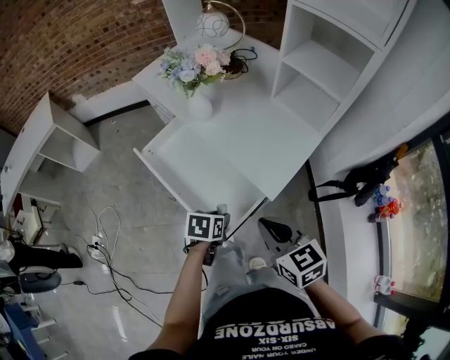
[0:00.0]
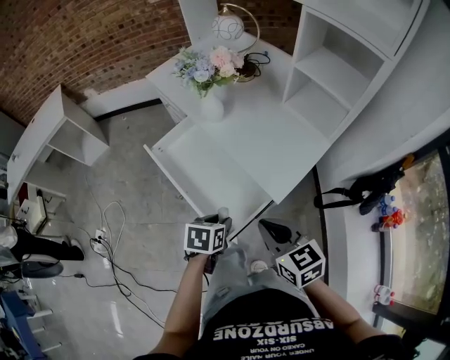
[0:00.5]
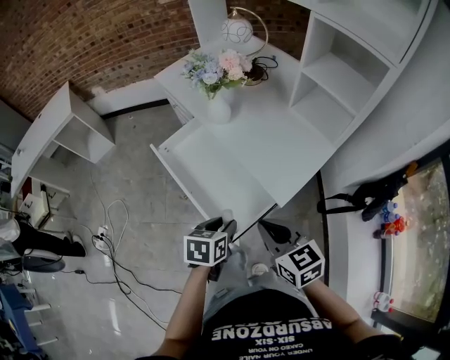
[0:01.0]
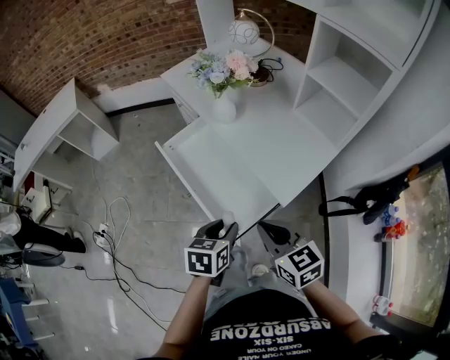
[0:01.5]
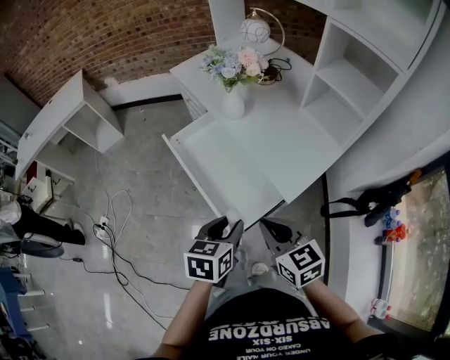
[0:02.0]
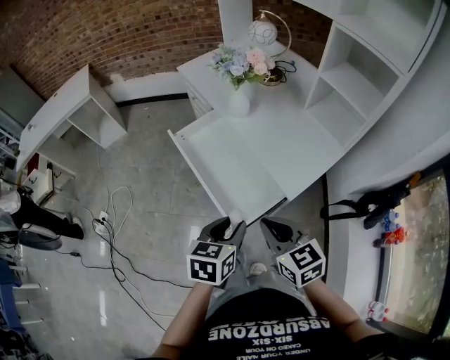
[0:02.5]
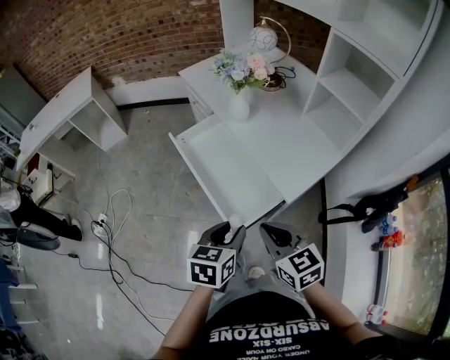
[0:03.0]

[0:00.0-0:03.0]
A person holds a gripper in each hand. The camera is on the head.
0:00.0 to 0:01.5: The left gripper shifts approximately 10 cm upward, and rotates approximately 20 degrees.
0:01.5 to 0:03.0: The right gripper shifts by about 5 cm. The left gripper shifts about 10 cm backward and upward.

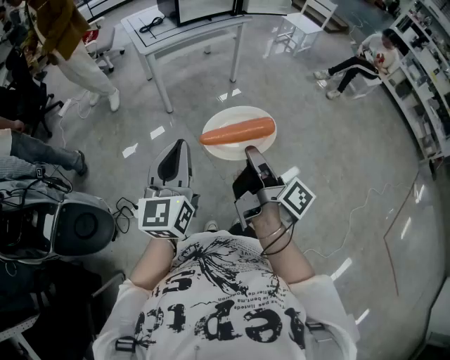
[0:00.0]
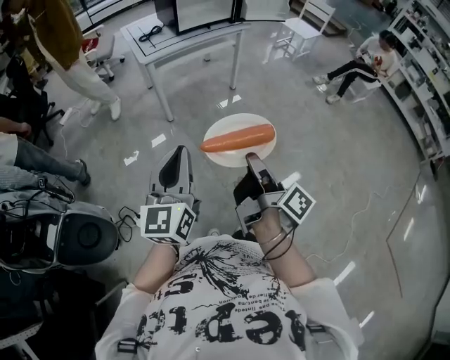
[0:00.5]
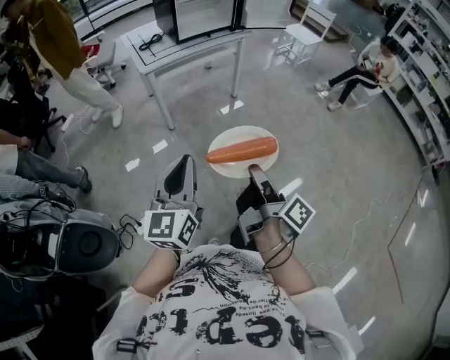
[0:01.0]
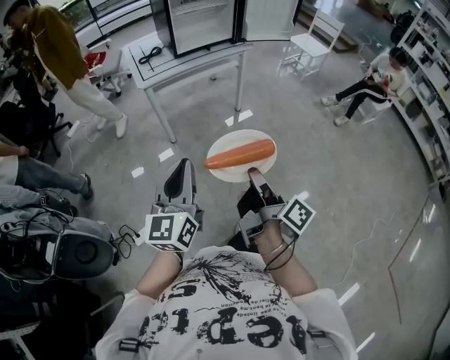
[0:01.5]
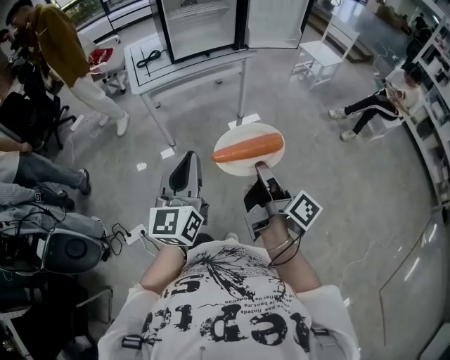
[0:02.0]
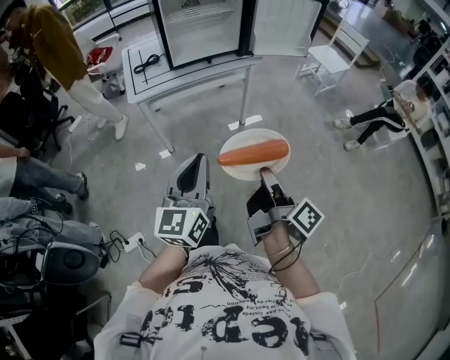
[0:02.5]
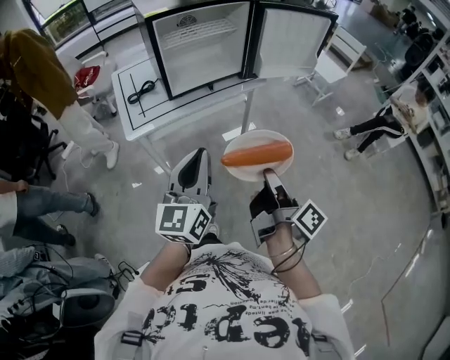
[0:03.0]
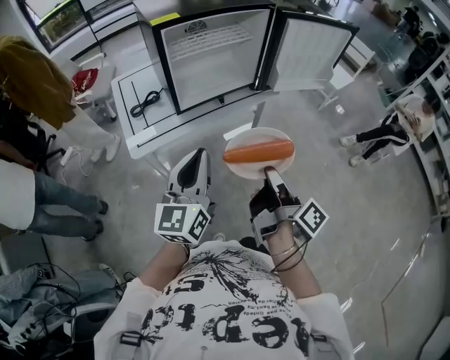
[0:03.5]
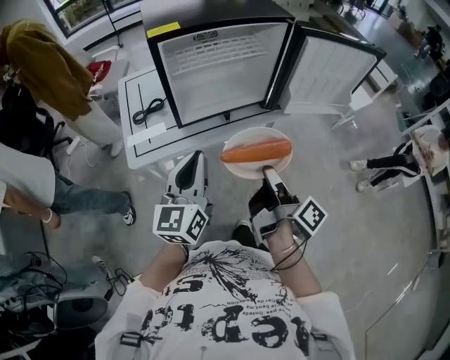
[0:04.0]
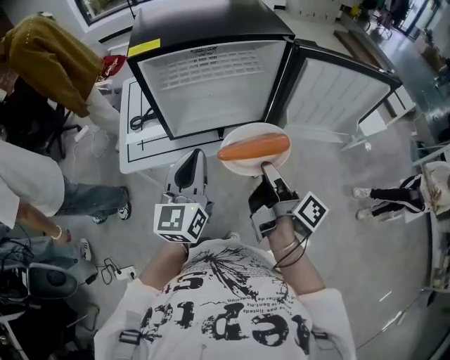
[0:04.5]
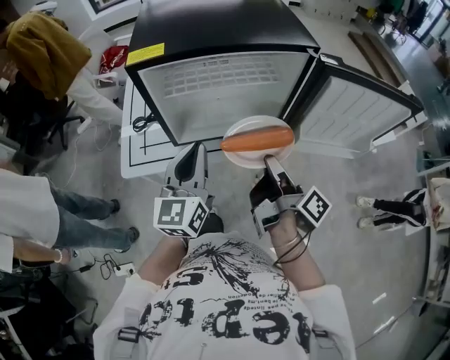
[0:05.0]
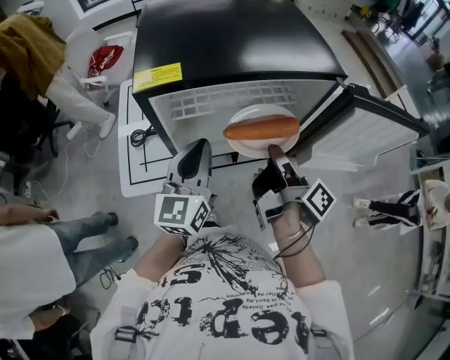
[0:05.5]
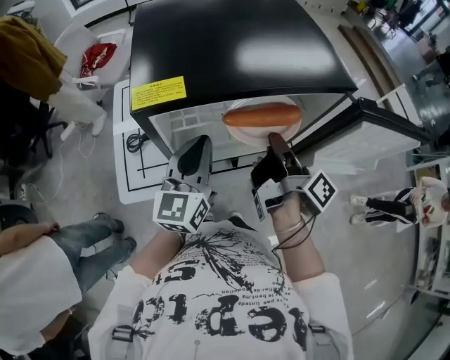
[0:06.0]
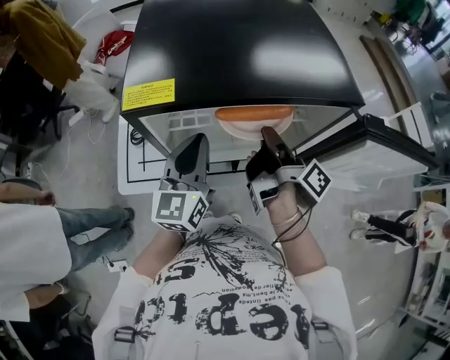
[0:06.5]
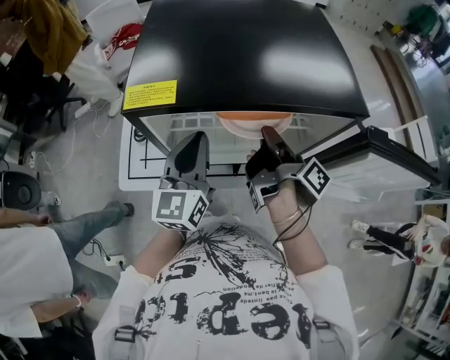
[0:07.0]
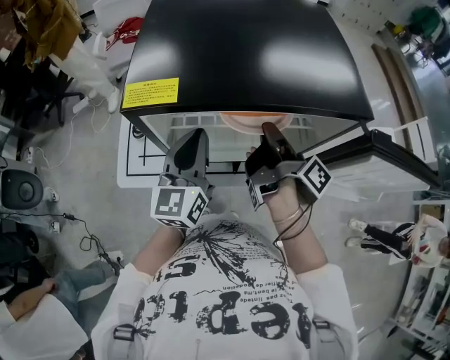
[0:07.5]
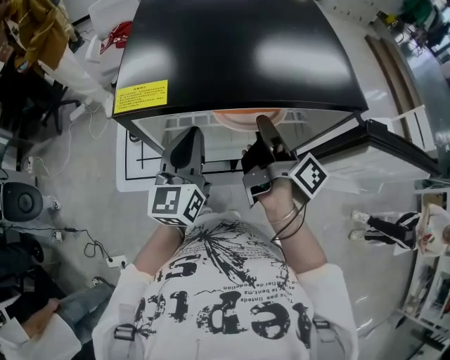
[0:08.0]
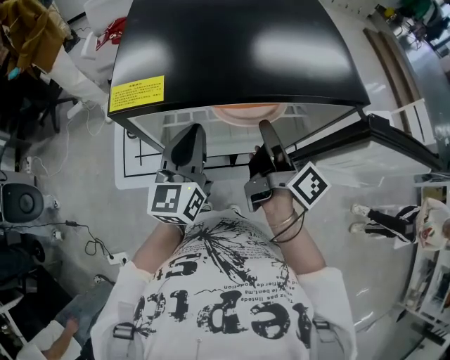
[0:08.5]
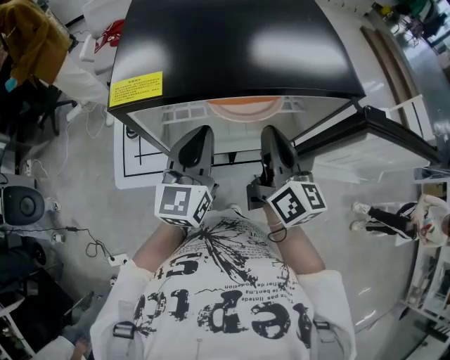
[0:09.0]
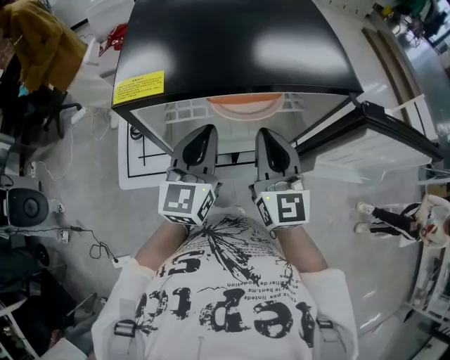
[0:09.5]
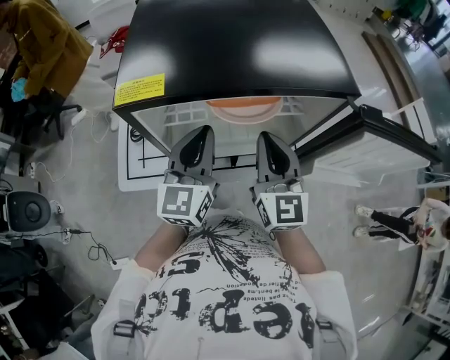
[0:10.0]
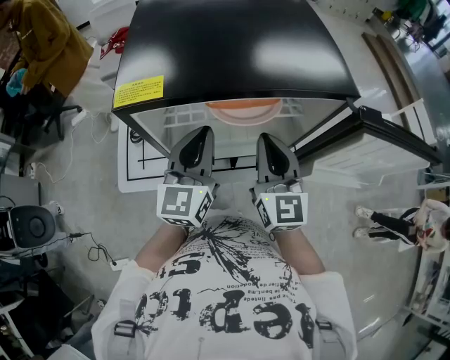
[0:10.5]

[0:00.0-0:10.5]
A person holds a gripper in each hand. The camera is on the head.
0:00.0 to 0:02.0: The left gripper ends up about 25 cm from where it was.
0:02.0 to 0:04.0: The left gripper changes place by roughly 50 cm.
0:04.0 to 0:06.5: The left gripper ends up roughly 30 cm from where it was.

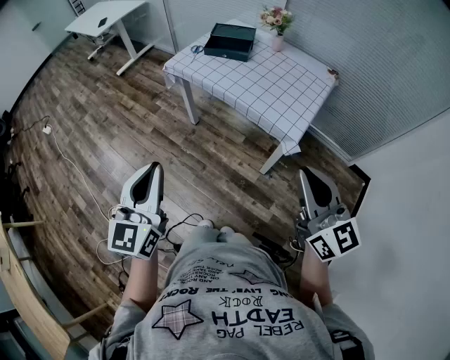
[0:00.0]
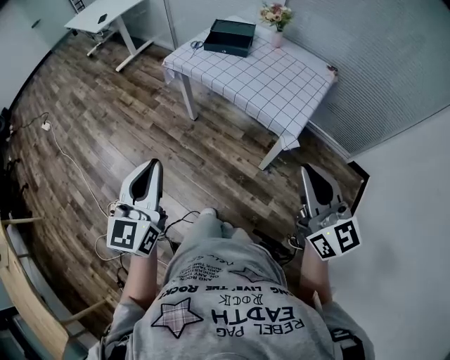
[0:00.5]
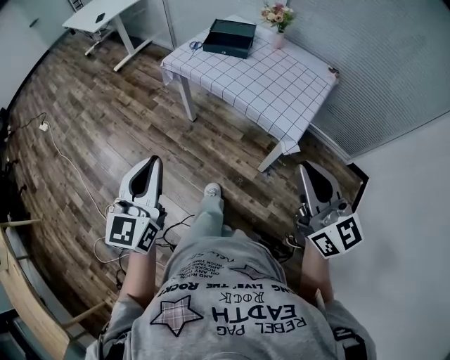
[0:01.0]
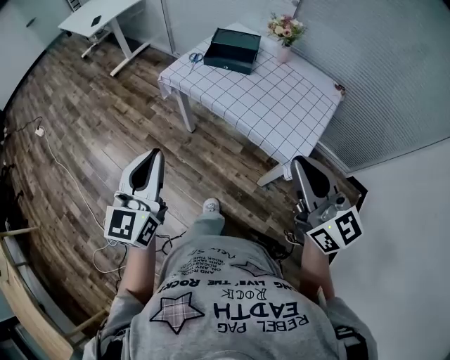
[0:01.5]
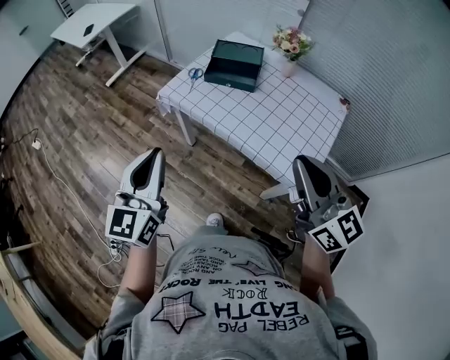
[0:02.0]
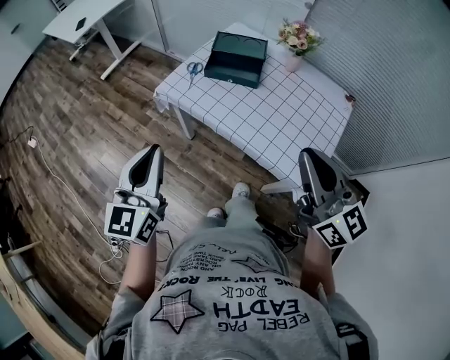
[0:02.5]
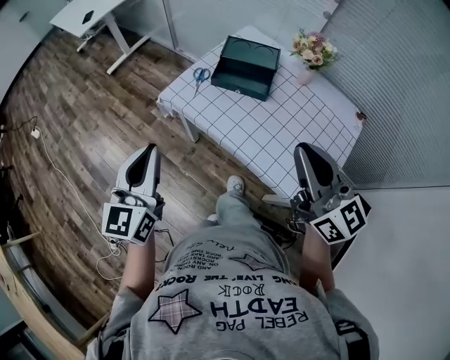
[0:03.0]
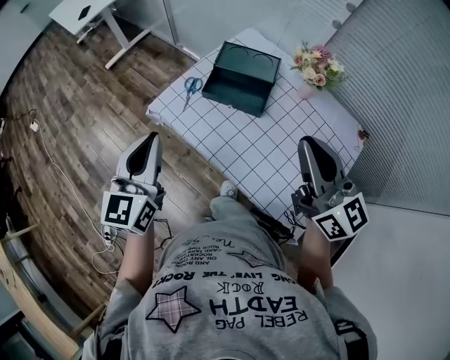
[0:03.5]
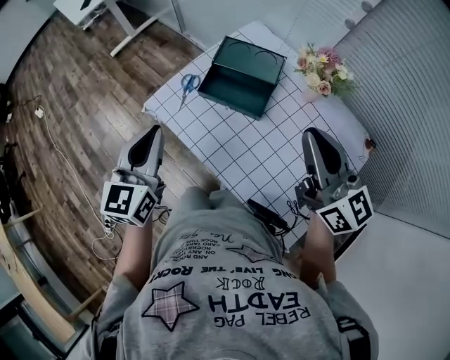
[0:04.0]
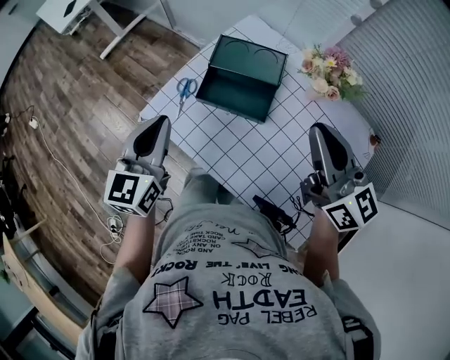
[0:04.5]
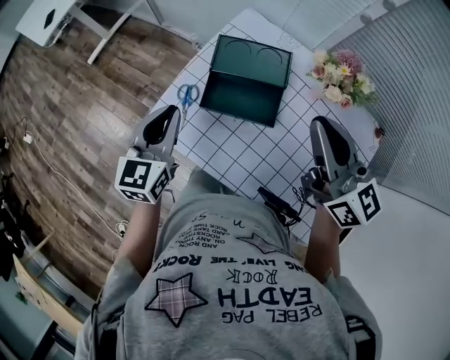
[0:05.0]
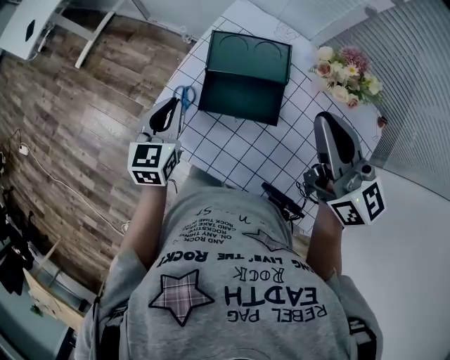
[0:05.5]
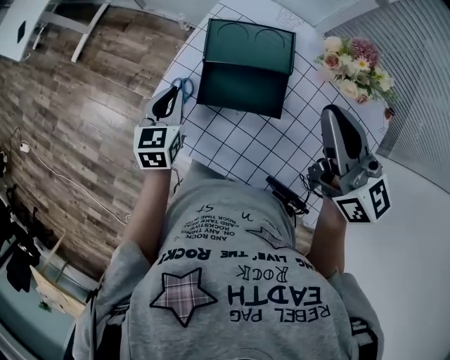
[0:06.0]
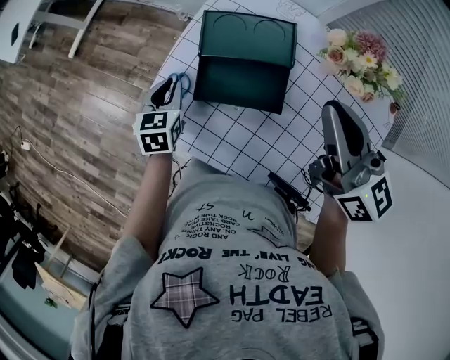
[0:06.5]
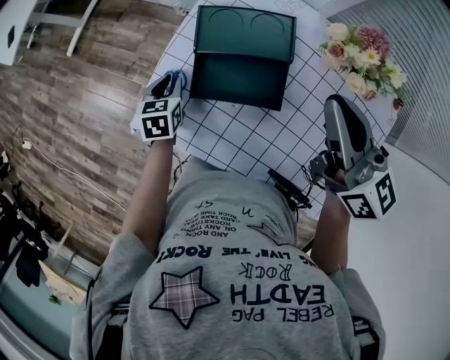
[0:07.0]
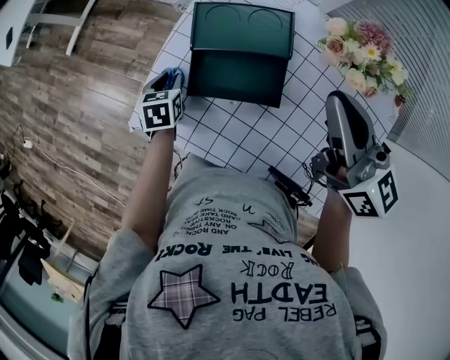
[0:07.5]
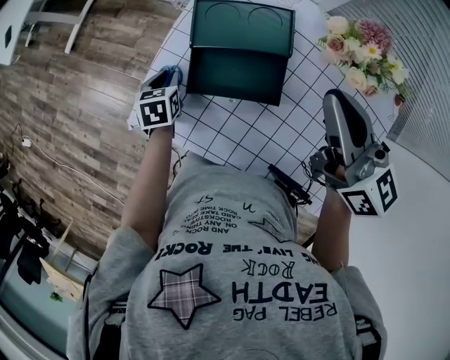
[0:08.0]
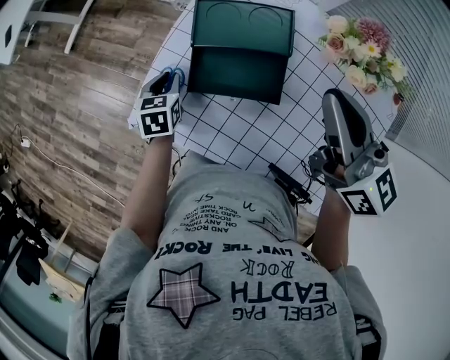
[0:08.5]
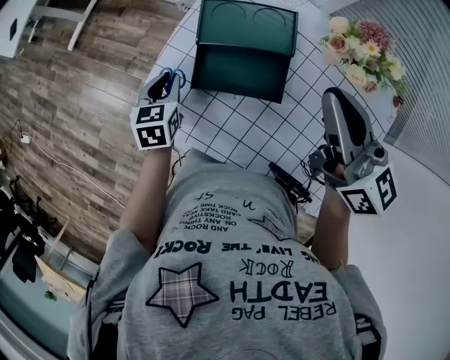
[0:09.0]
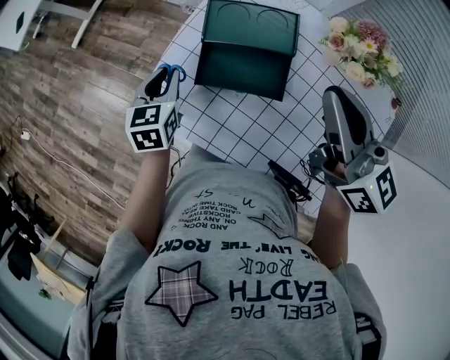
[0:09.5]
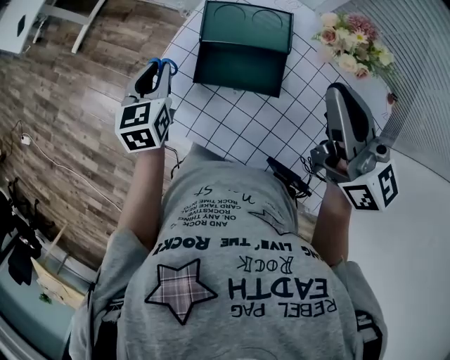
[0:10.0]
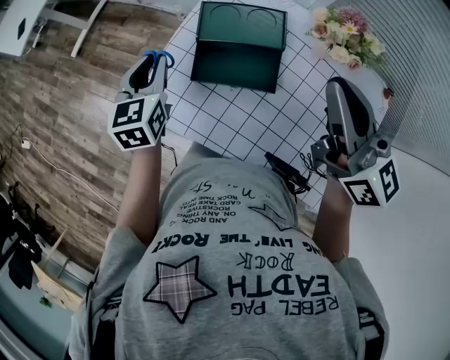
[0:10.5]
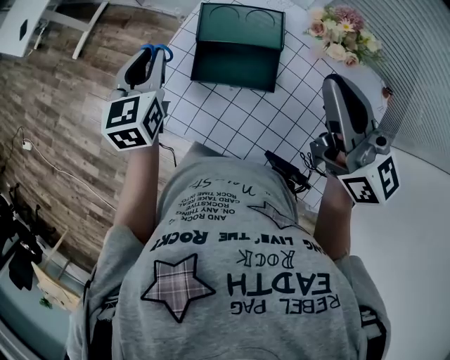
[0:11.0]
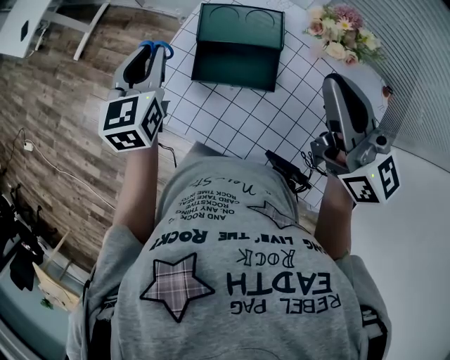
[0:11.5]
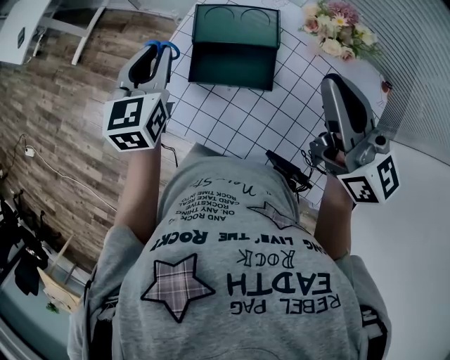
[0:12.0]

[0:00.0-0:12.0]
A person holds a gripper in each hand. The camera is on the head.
0:00.0 to 0:02.0: Both grippers travel together forward, some 25 cm.
0:02.0 to 0:04.0: The grippers both shift forward by some 30 cm.
0:04.0 to 0:06.0: The right gripper goes some 15 cm forward; the left gripper is displaced forward and downward by roughly 30 cm, and turns by some 30 degrees.
0:06.0 to 0:08.0: The left gripper moves downward, roughly 10 cm, and turns by roughly 20 degrees.
0:08.0 to 0:10.0: The left gripper shifts roughly 15 cm upward, and rotates approximately 30 degrees; the right gripper shifts by roughly 5 cm.
0:10.0 to 0:12.0: The left gripper moves upward, roughly 10 cm.

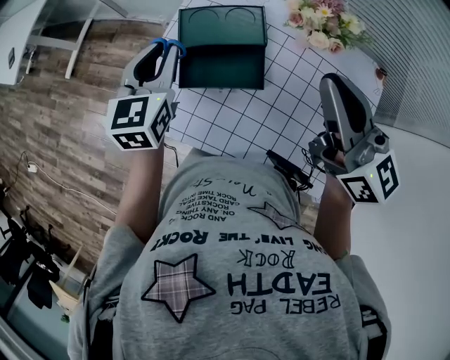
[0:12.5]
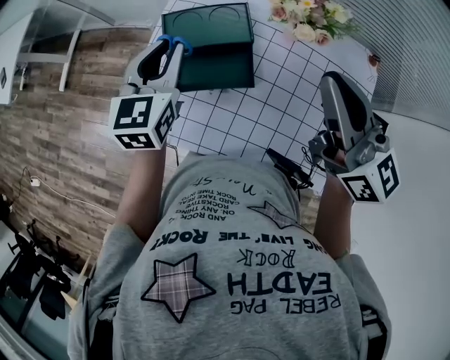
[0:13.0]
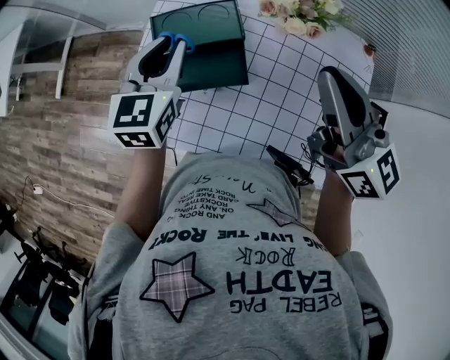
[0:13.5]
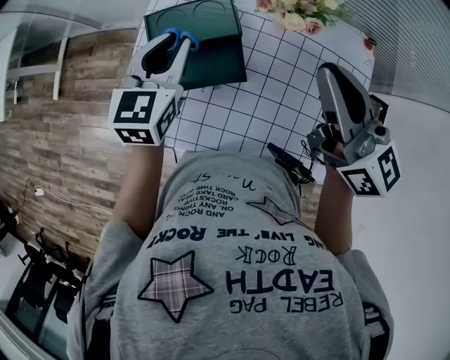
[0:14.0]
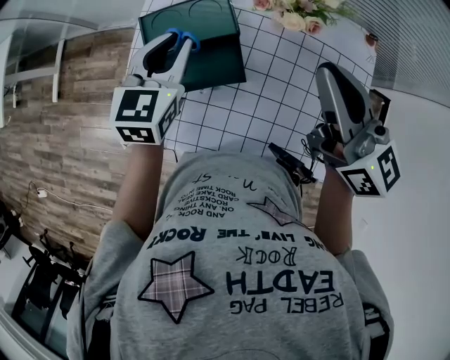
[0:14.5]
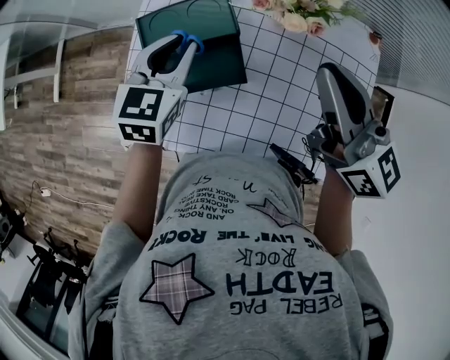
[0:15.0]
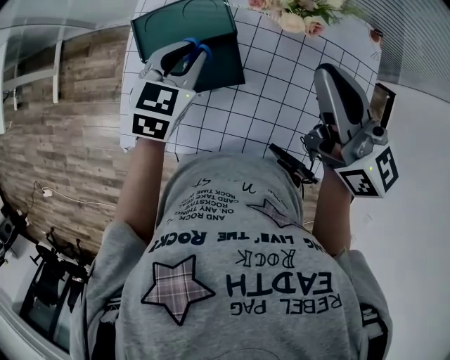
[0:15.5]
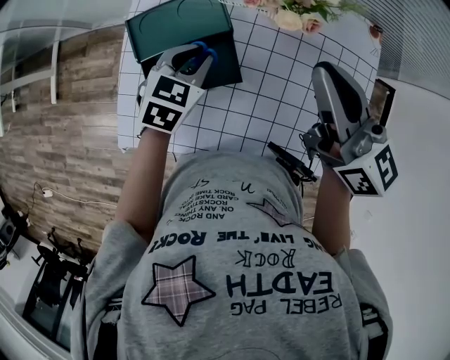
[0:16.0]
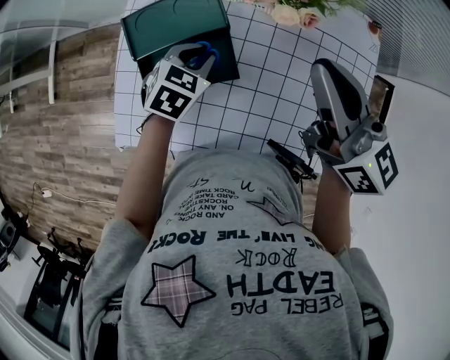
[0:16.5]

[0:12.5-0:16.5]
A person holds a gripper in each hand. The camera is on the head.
0:12.5 to 0:14.5: The left gripper is displaced to the right by approximately 10 cm.
0:14.5 to 0:16.5: The left gripper shifts roughly 15 cm downward and to the right, and turns by about 30 degrees.
